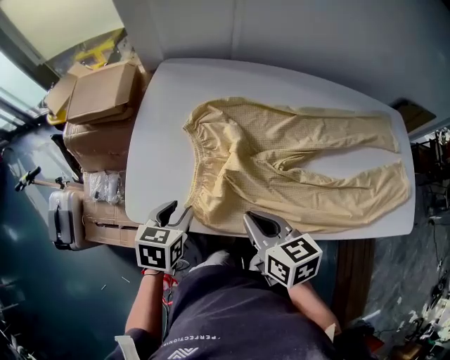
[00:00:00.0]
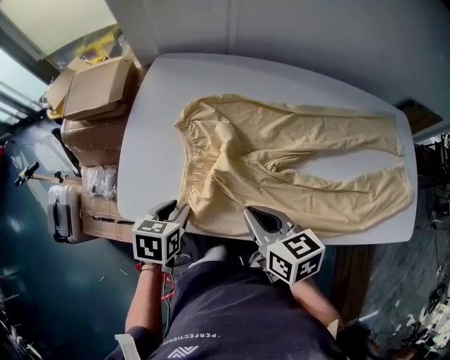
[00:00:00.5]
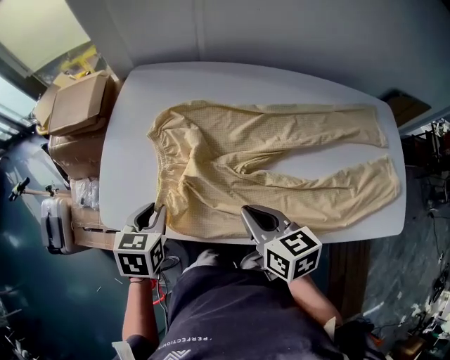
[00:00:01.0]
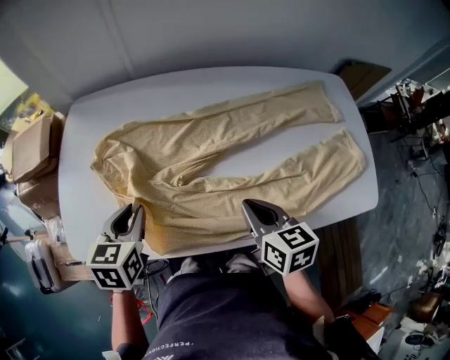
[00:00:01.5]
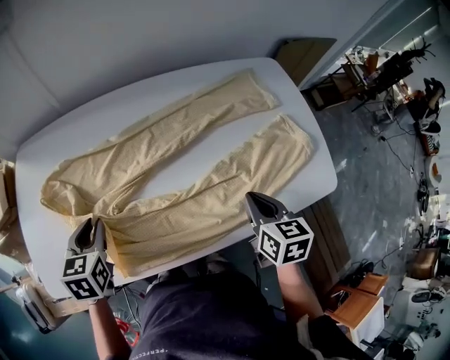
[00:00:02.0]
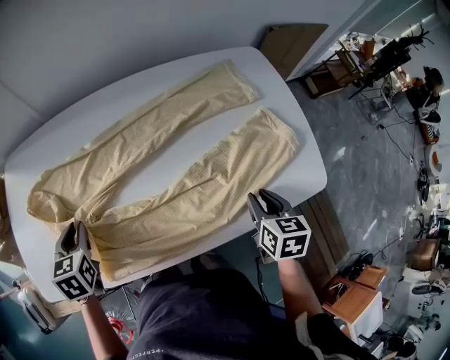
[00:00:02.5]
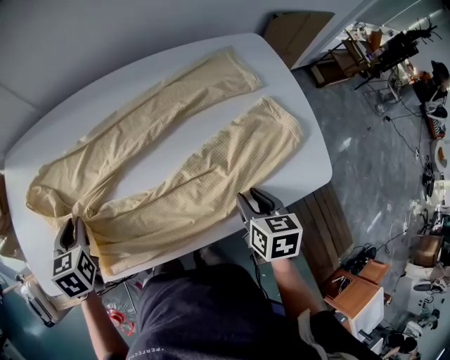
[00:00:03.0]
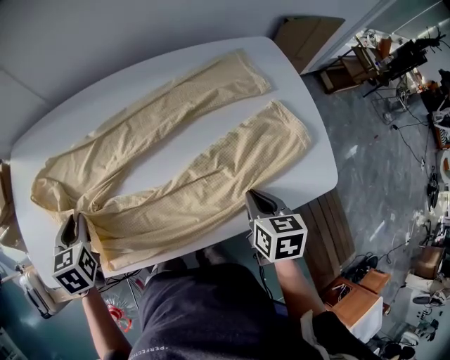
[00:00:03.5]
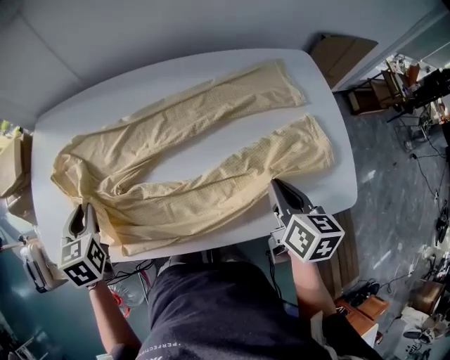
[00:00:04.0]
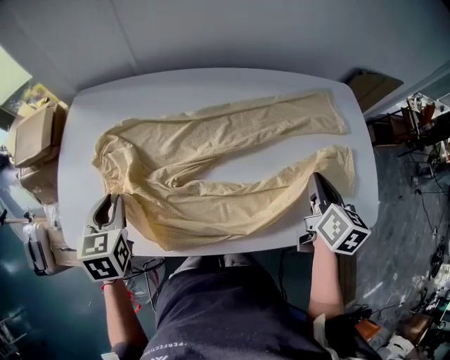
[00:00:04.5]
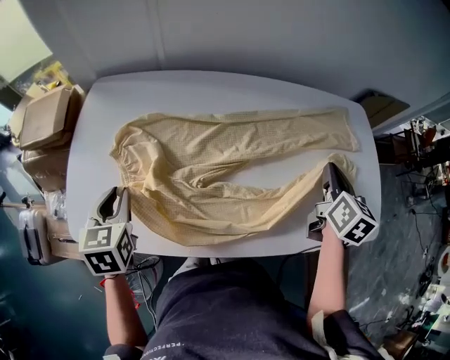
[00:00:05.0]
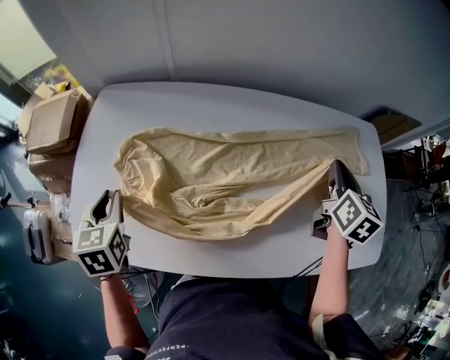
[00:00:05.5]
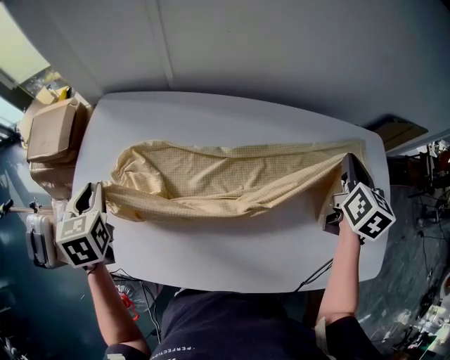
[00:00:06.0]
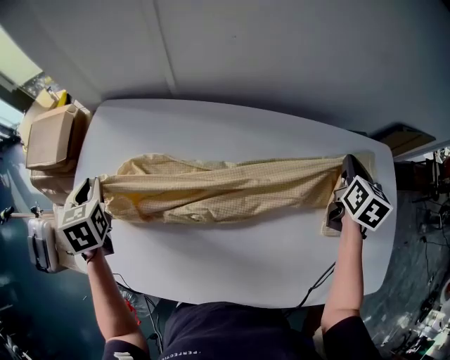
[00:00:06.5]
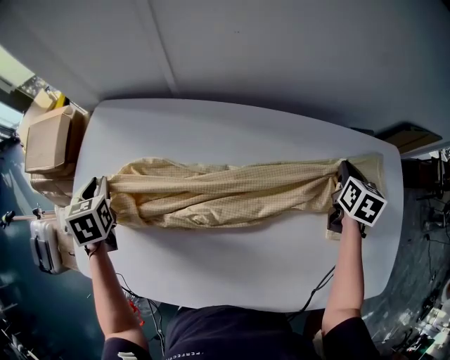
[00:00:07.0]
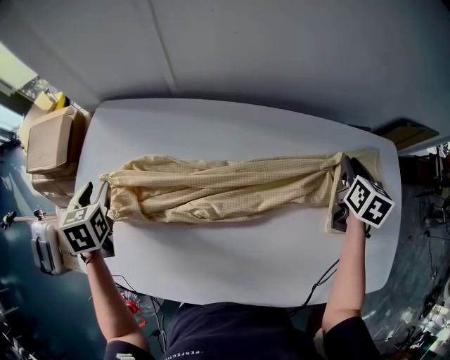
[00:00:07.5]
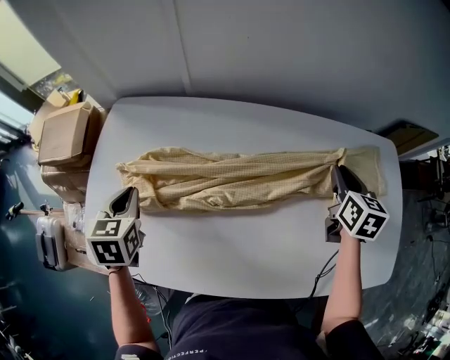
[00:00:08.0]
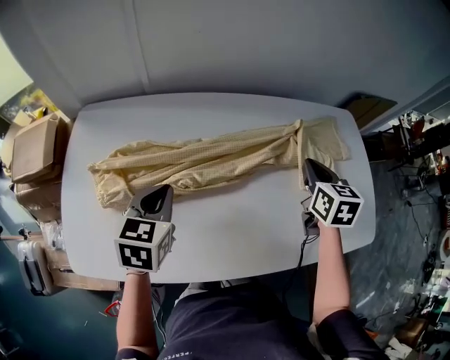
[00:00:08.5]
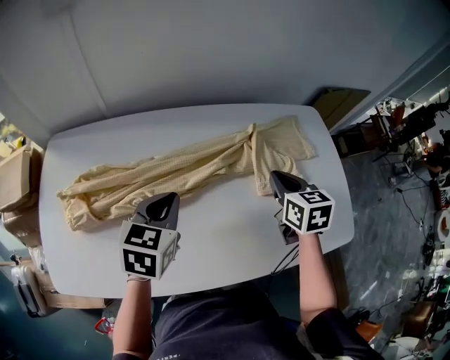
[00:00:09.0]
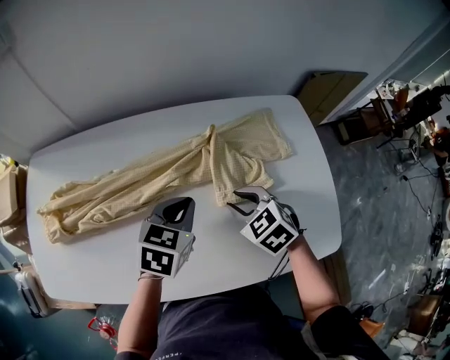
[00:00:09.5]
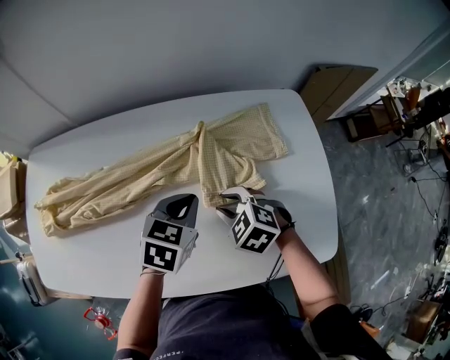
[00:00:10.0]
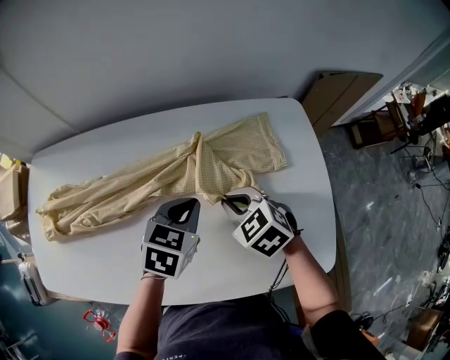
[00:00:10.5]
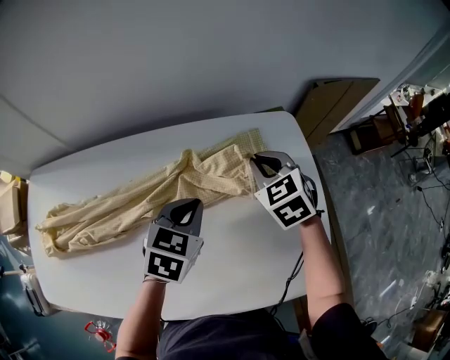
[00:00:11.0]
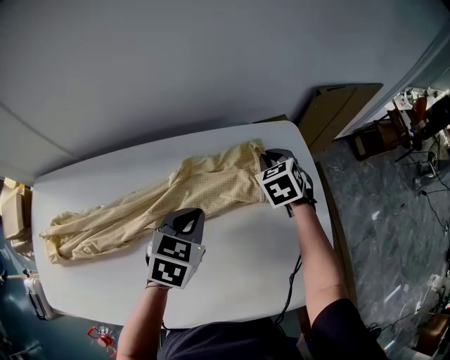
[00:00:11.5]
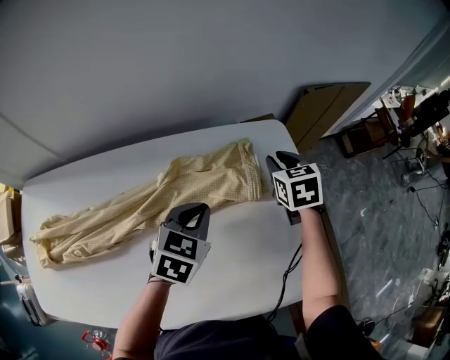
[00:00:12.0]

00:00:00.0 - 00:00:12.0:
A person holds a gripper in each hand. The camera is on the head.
00:00:00.0 - 00:00:02.0: The left gripper shifts by some 25 cm, and closes up. Meanwhile the right gripper ends up some 40 cm from where it was, and rotates approximately 40 degrees.
00:00:02.0 - 00:00:04.0: The right gripper travels to the right by approximately 5 cm, and opens and closes again.
00:00:04.0 - 00:00:06.0: The right gripper travels forward by some 25 cm, and rotates roughly 20 degrees; the left gripper goes some 20 cm to the left and forward.
00:00:06.0 - 00:00:08.0: The right gripper is displaced downward and to the left by roughly 10 cm; the left gripper moves some 10 cm forward and comes back, and opens, then closes again.
00:00:08.0 - 00:00:10.0: The right gripper goes some 20 cm backward, downward and to the right, and turns by about 60 degrees. Meanwhile the left gripper travels to the right by about 50 cm, and changes its angle by approximately 40 degrees.
00:00:10.0 - 00:00:12.0: The right gripper shifts about 30 cm forward and to the right, and rotates approximately 50 degrees. Meanwhile the left gripper moves forward and to the right, roughly 10 cm.

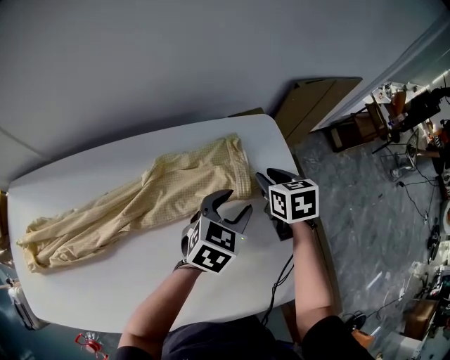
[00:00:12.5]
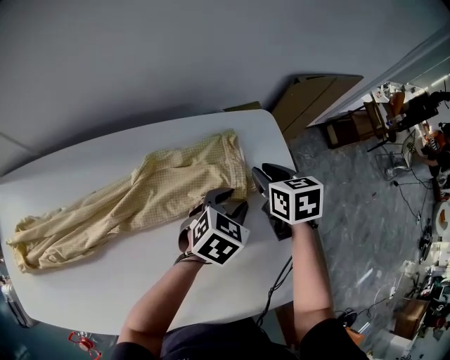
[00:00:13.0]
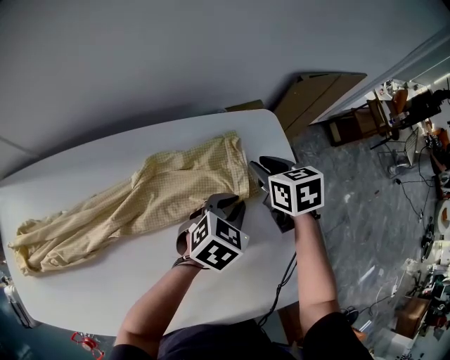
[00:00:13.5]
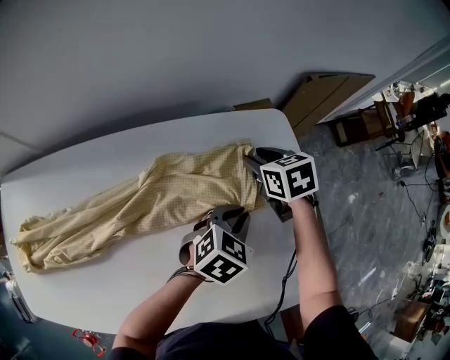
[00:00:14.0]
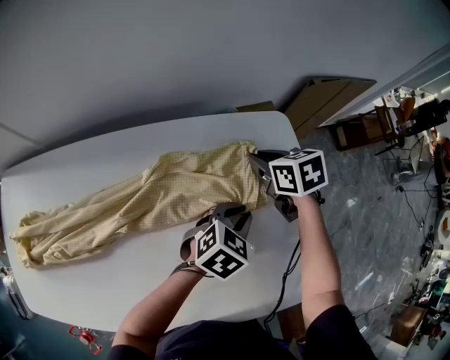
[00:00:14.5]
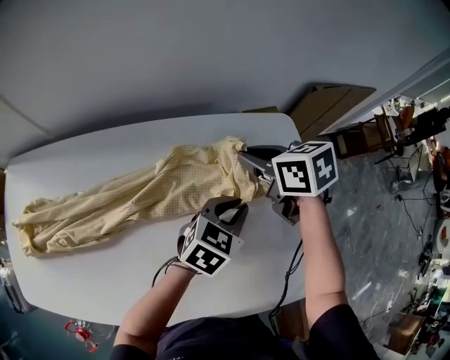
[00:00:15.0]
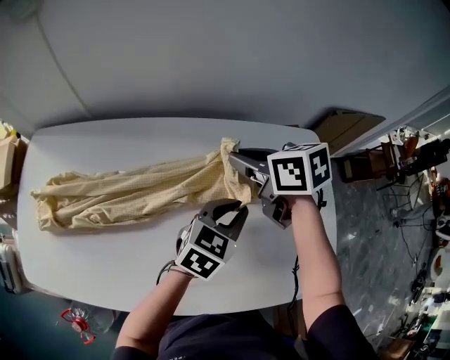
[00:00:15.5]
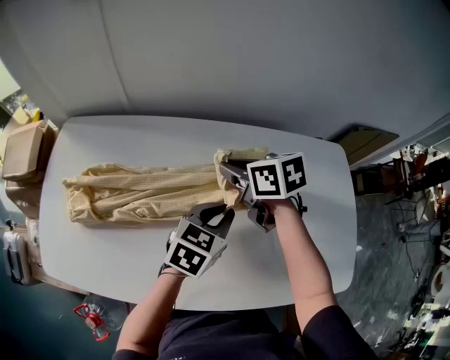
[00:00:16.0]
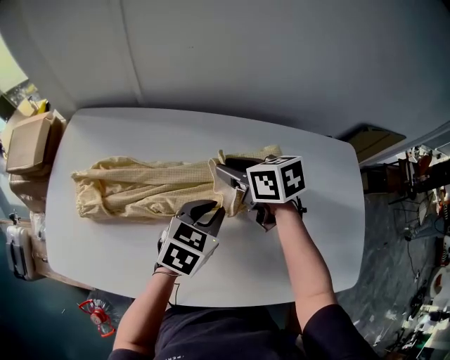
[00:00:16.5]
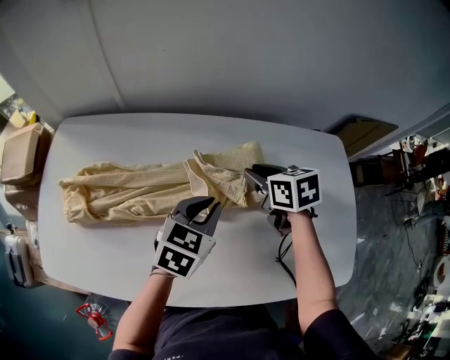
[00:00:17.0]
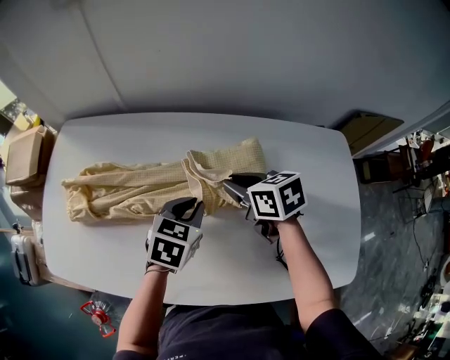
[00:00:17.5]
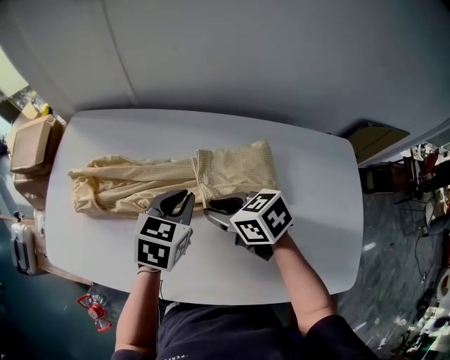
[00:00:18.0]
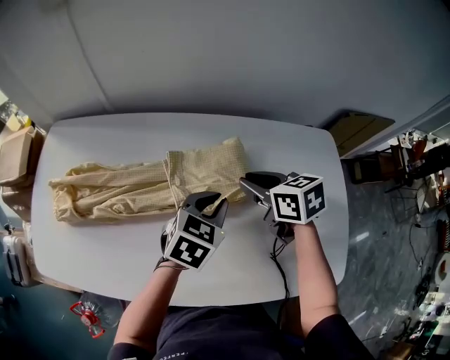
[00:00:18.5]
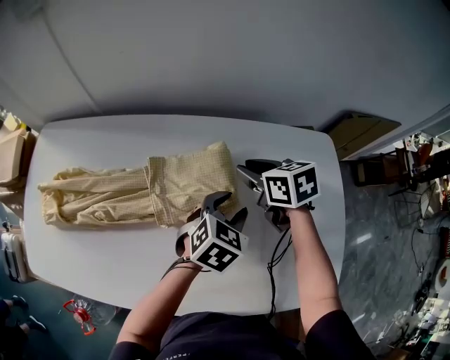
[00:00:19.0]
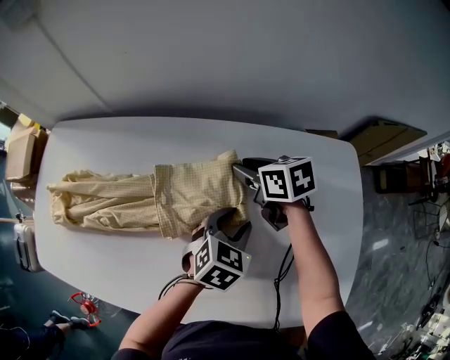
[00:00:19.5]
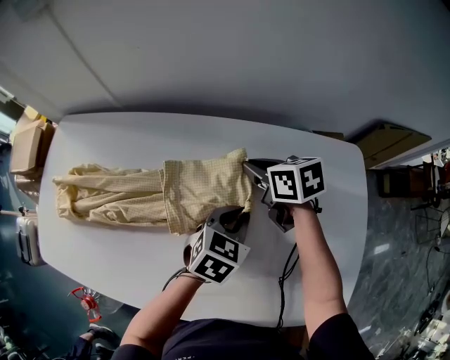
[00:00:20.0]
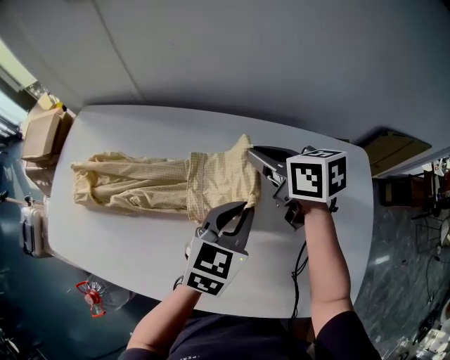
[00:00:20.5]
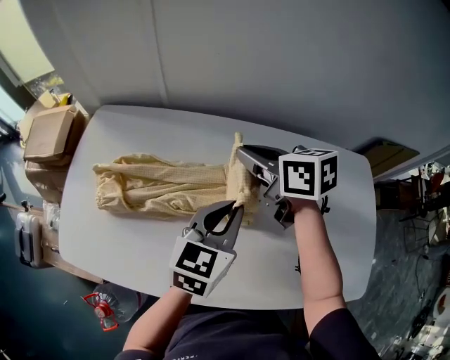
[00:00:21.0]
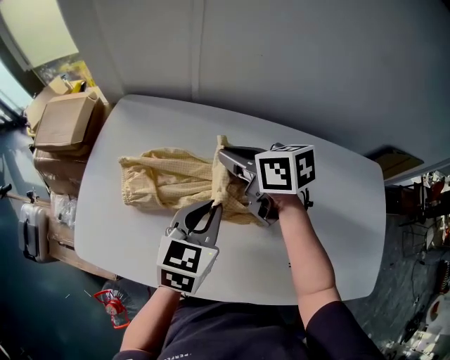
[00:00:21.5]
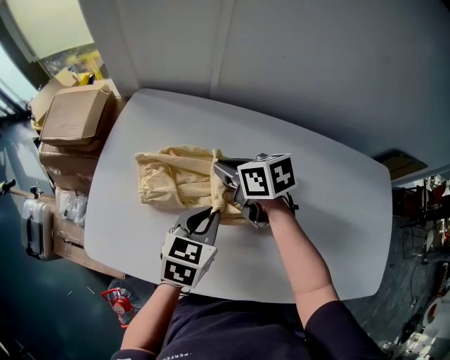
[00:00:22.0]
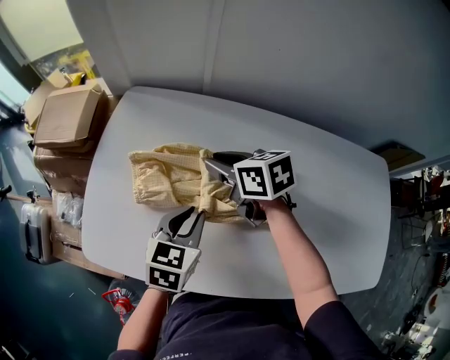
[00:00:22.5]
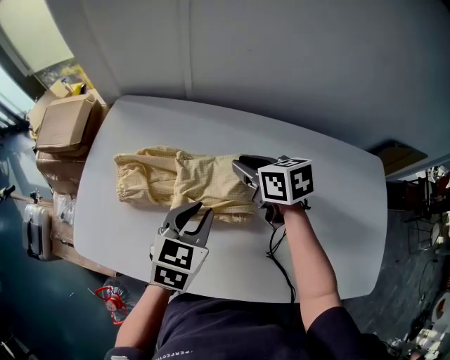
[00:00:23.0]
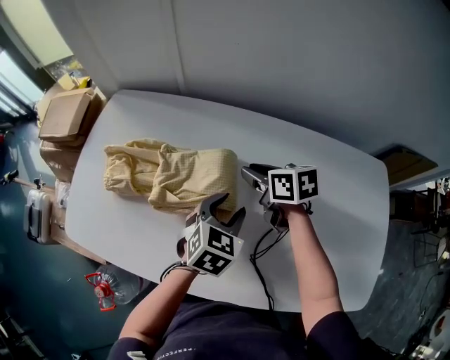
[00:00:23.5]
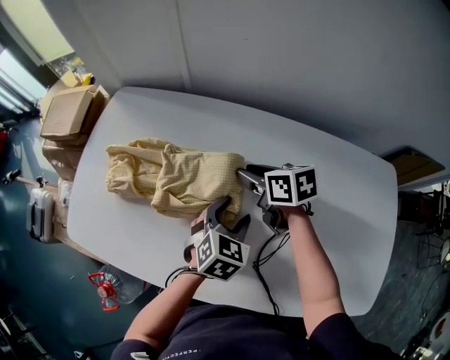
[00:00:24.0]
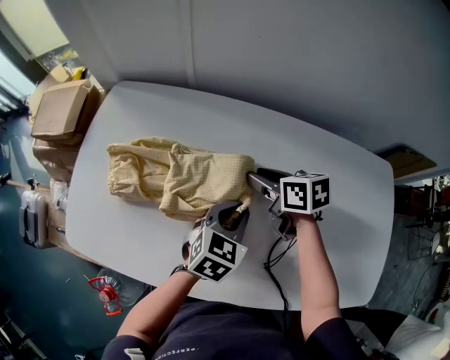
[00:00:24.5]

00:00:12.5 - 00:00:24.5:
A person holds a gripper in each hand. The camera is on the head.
00:00:12.5 - 00:00:14.5: The left gripper closes its fingers. The right gripper heads to the left, covering some 5 cm, and closes.
00:00:14.5 - 00:00:16.5: Both grippers travel together to the left, roughly 40 cm. The left gripper changes its angle by about 30 degrees; the right gripper rotates some 20 degrees, and opens.
00:00:16.5 - 00:00:18.5: The right gripper ends up some 15 cm from where it was, while the left gripper shifts by some 10 cm.
00:00:18.5 - 00:00:20.5: The right gripper travels forward by about 10 cm; the left gripper goes downward and returns, some 5 cm each way, and opens, then closes once more.
00:00:20.5 - 00:00:22.5: Both grippers move to the left, about 35 cm.
00:00:22.5 - 00:00:24.5: The grippers both shift to the right by approximately 20 cm. The left gripper opens, then closes once more.

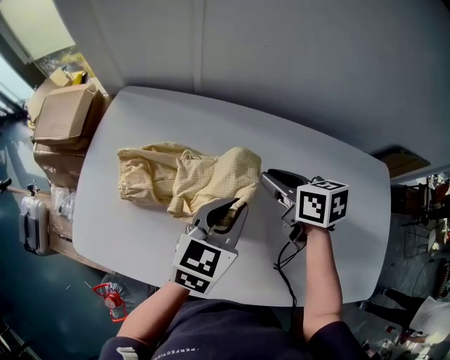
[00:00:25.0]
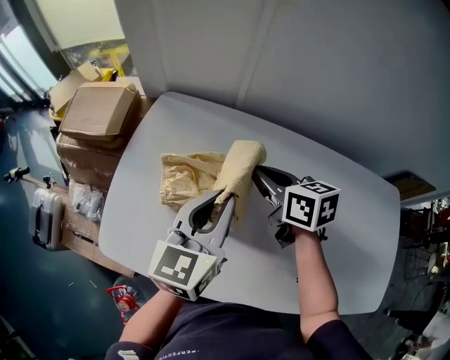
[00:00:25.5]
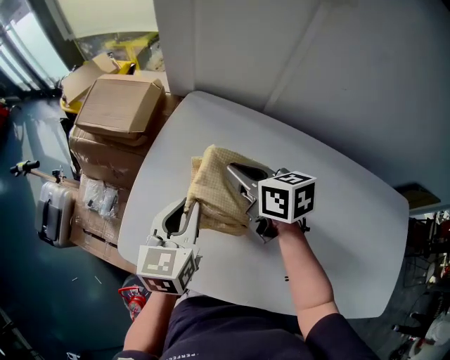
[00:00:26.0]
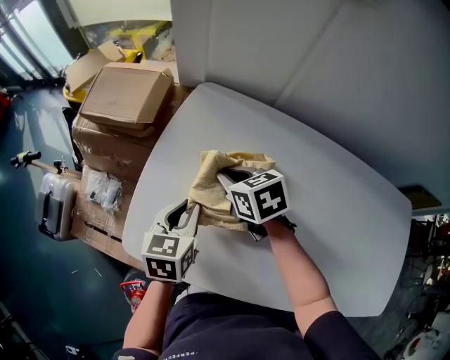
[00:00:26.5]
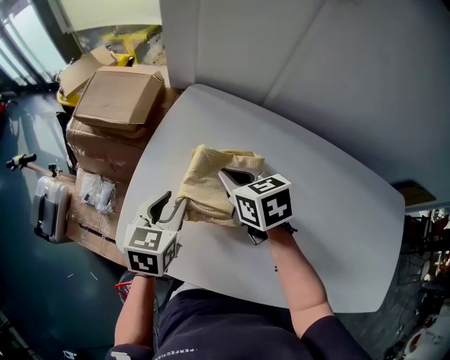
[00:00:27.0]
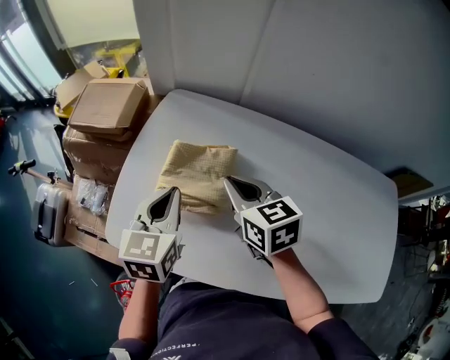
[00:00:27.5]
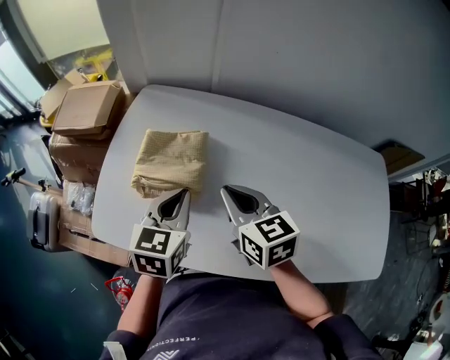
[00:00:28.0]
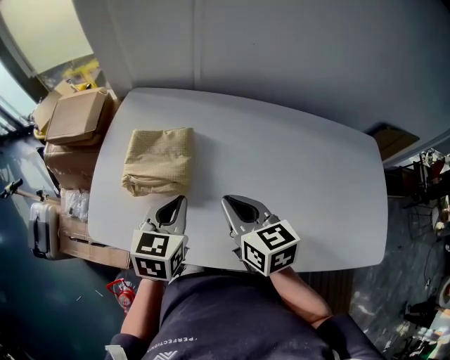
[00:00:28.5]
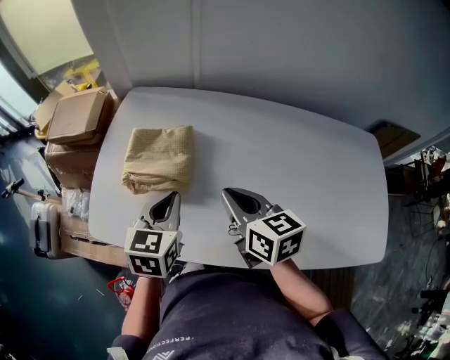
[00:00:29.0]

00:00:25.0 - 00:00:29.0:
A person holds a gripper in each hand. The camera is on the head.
00:00:25.0 - 00:00:27.0: The grippers both shift to the left by roughly 30 cm. The left gripper rotates some 30 degrees, and opens up. Meanwhile the right gripper turns by about 20 degrees.
00:00:27.0 - 00:00:29.0: The right gripper heads backward and to the right, covering approximately 25 cm, and rotates roughly 30 degrees, while the left gripper goes roughly 20 cm to the right and backward, and closes.
